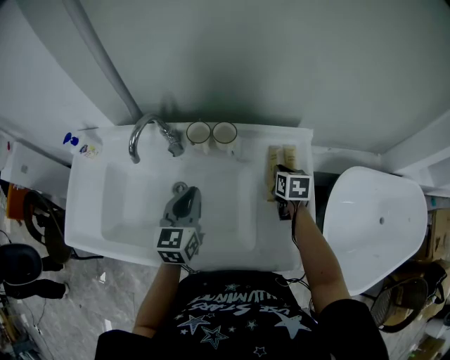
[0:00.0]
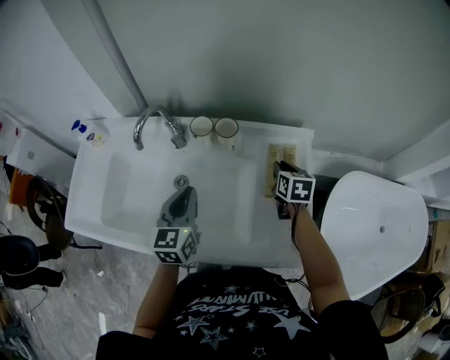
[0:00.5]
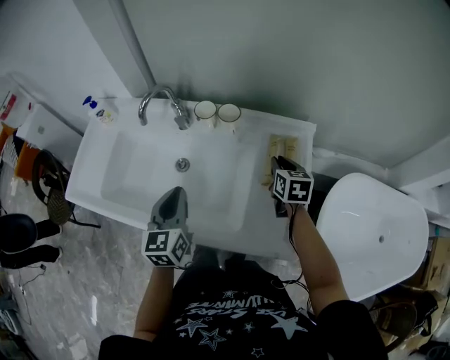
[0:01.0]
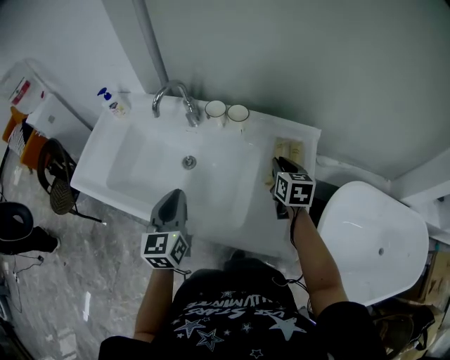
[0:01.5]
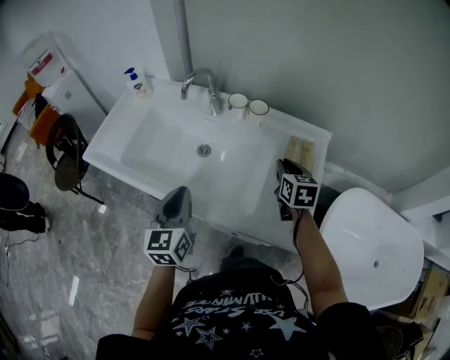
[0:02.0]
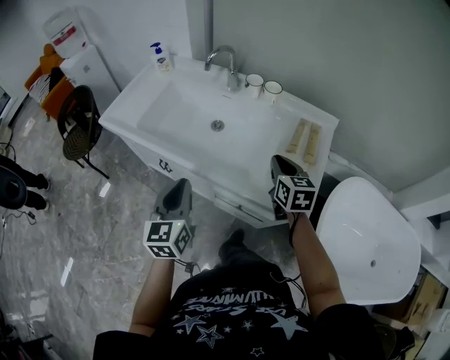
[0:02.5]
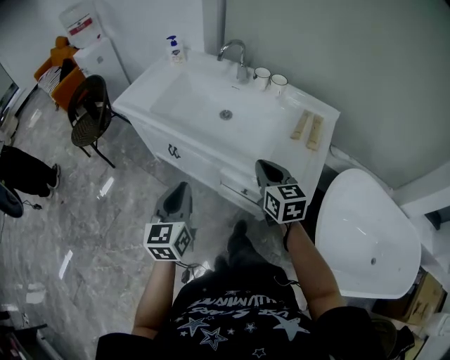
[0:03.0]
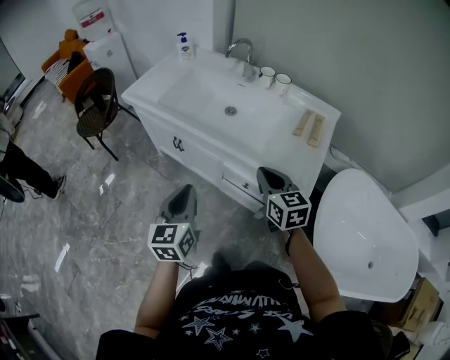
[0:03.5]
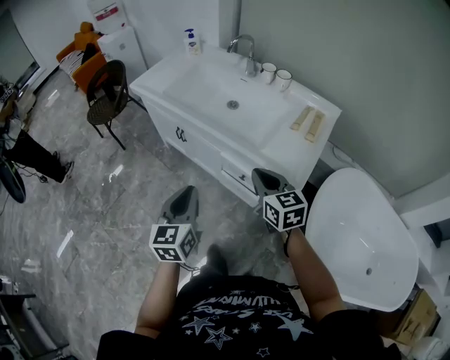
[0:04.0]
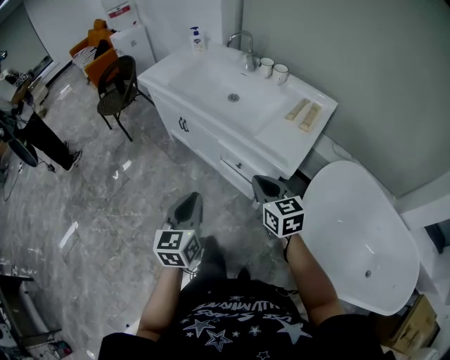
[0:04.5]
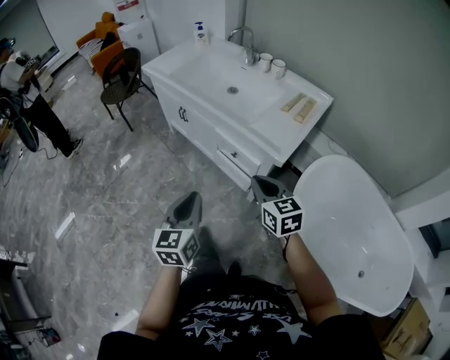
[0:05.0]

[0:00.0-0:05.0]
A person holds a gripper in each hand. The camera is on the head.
0:00.0 to 0:02.5: The right gripper ends up approximately 25 cm from where it was, and swivels approximately 30 degrees. Meanwhile the left gripper moves about 35 cm, and changes its angle by about 30 degrees.
0:02.5 to 0:05.0: Both grippers move backward, about 35 cm. The right gripper turns by some 30 degrees.

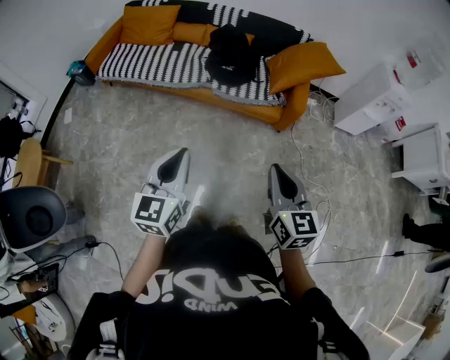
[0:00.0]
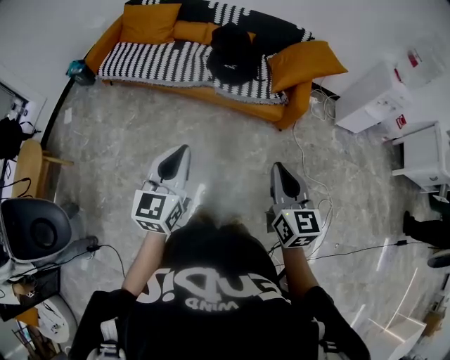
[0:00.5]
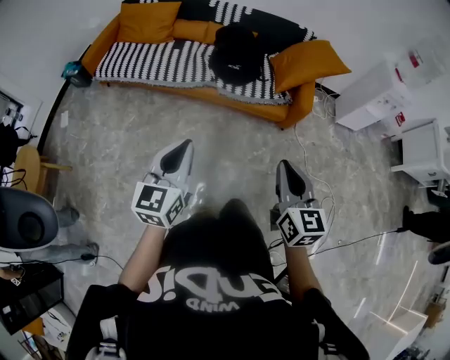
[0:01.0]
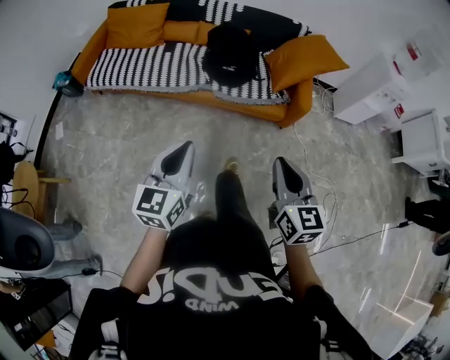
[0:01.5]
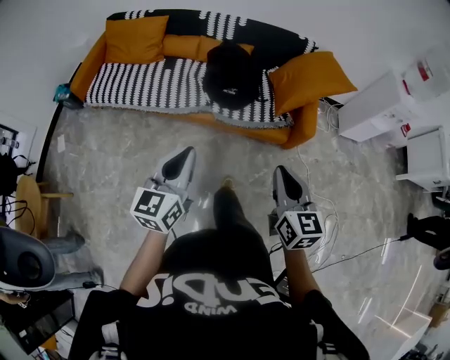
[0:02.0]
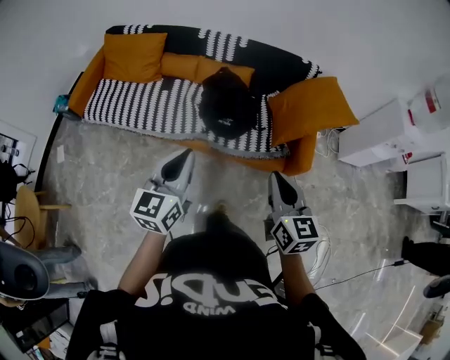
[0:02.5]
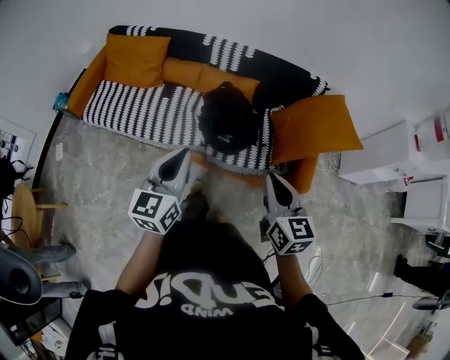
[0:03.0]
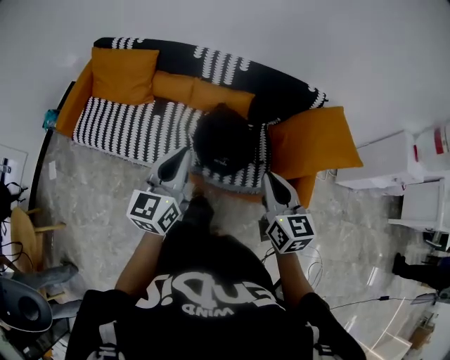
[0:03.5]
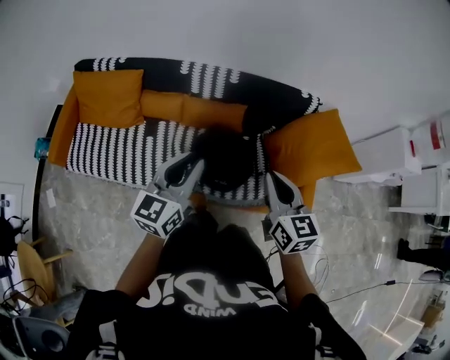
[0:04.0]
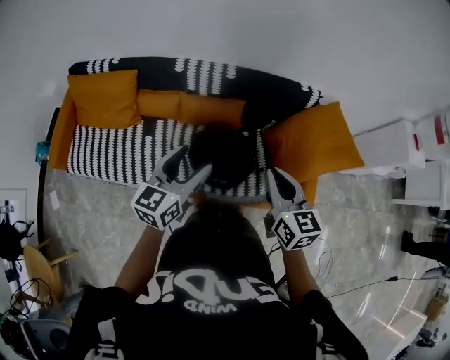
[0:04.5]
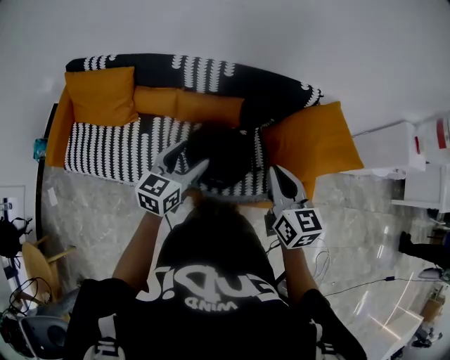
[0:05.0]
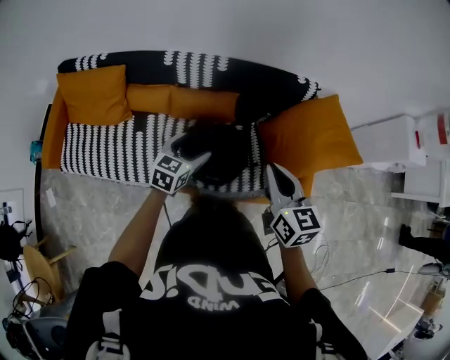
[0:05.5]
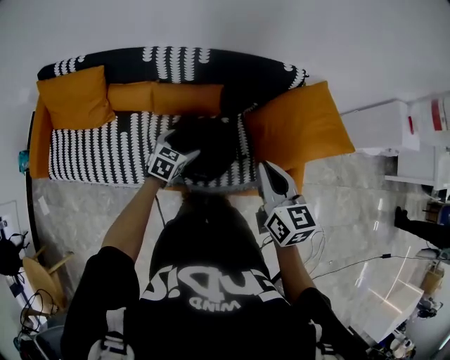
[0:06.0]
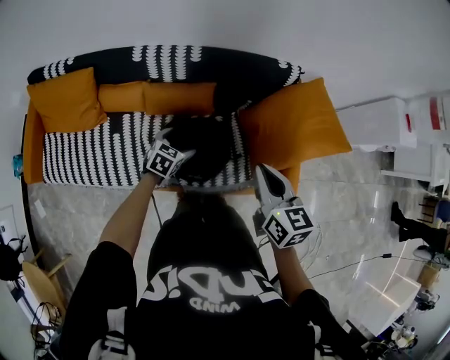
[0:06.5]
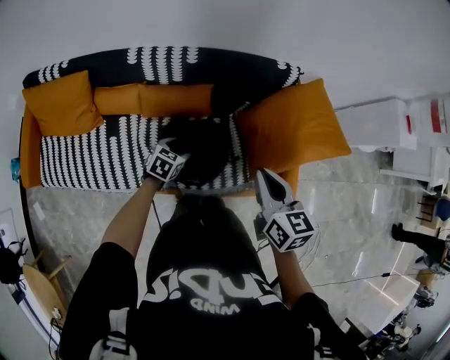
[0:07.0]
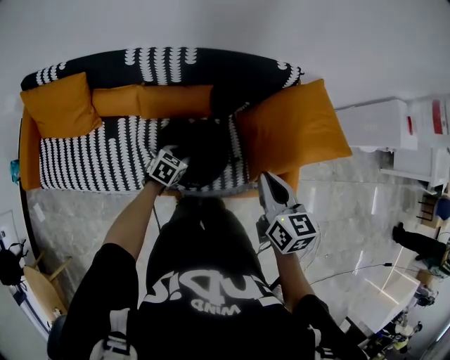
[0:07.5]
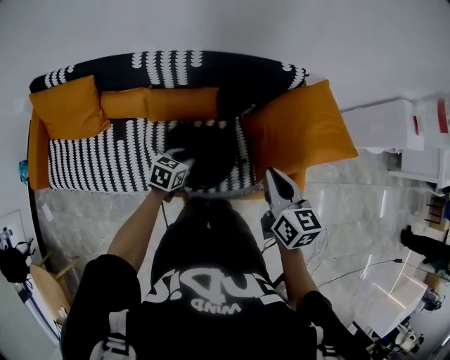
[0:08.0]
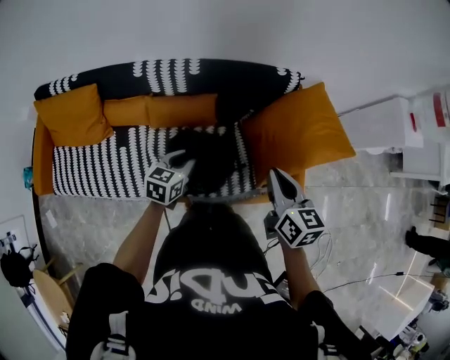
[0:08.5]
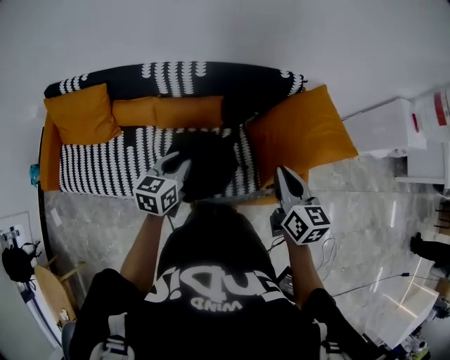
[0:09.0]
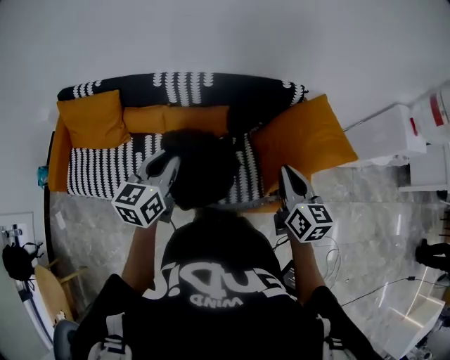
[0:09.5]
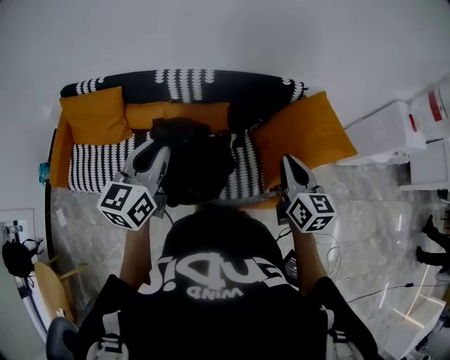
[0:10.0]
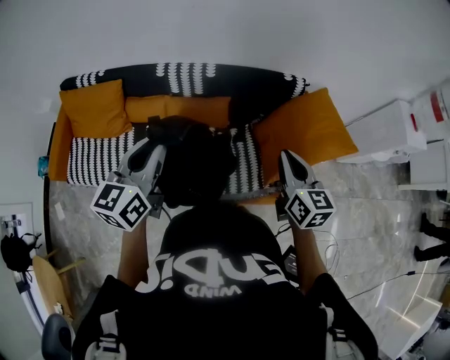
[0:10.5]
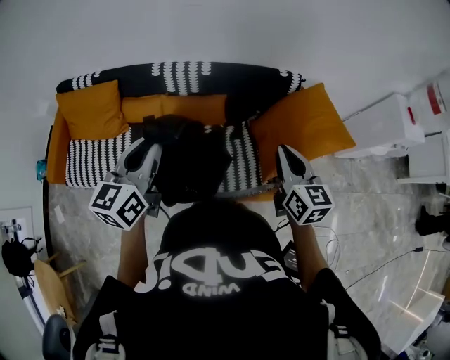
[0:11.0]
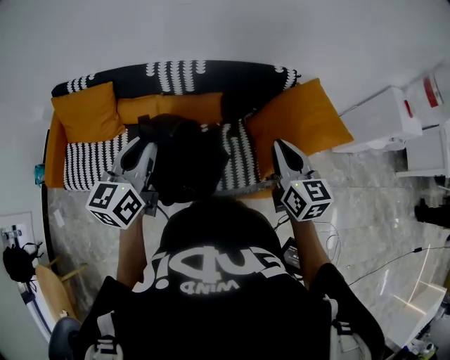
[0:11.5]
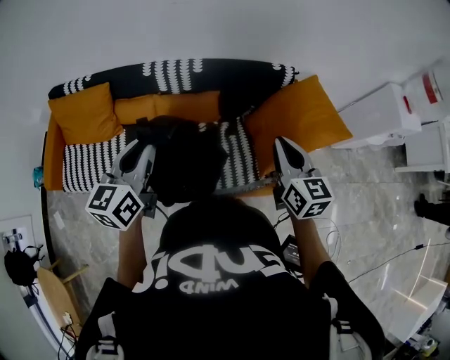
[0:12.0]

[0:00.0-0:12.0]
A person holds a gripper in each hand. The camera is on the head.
0:00.0 to 0:02.0: Both grippers move forward, about 25 cm.
0:02.0 to 0:04.0: Both grippers are carried forward, approximately 60 cm.
0:04.0 to 0:06.0: The right gripper goes approximately 15 cm forward, to the right and downward, while the left gripper is displaced downward and forward by roughly 35 cm, tilts its fingers about 40 degrees downward, and opens its fingers.
0:06.0 to 0:08.0: The left gripper goes downward and returns, roughly 10 cm each way, and closes. Meanwhile the right gripper shifts about 5 cm forward.
0:08.0 to 0:10.0: The right gripper shifts approximately 10 cm upward, backward and to the right. Meanwhile the left gripper moves upward, approximately 35 cm, and angles its fingers upward, by some 30 degrees.
0:10.0 to 0:12.0: The grippers stay close to where they were, moving slightly.

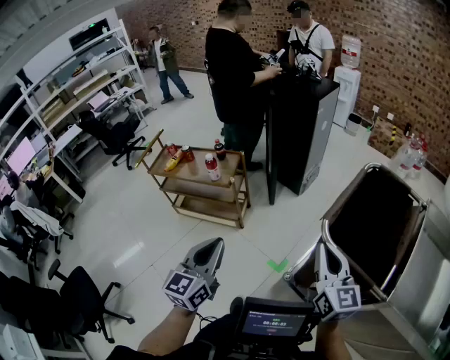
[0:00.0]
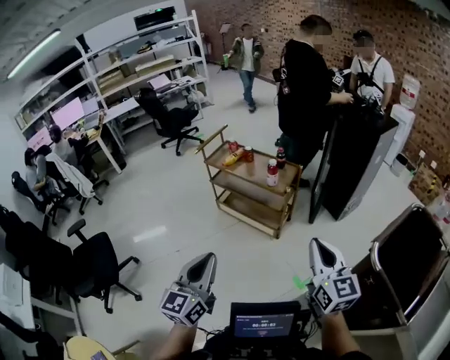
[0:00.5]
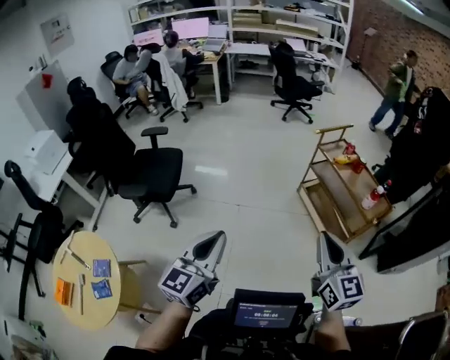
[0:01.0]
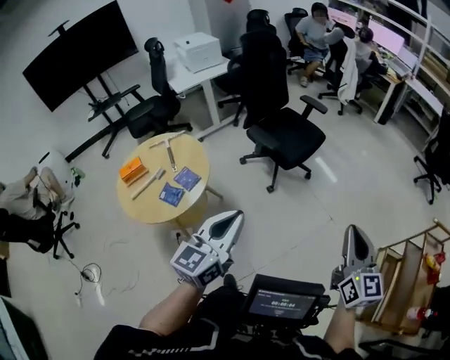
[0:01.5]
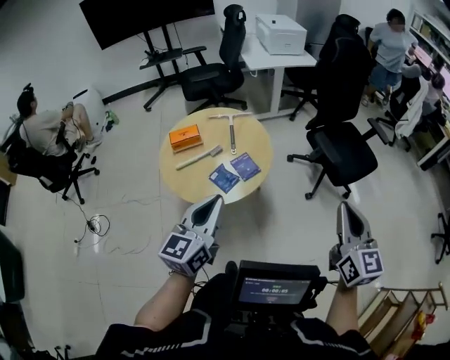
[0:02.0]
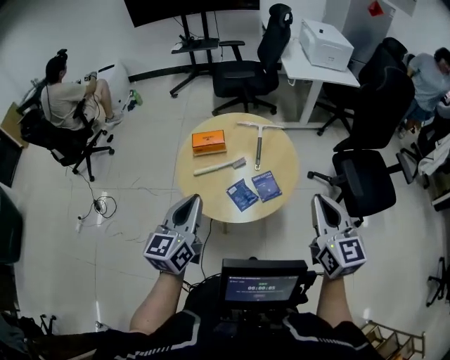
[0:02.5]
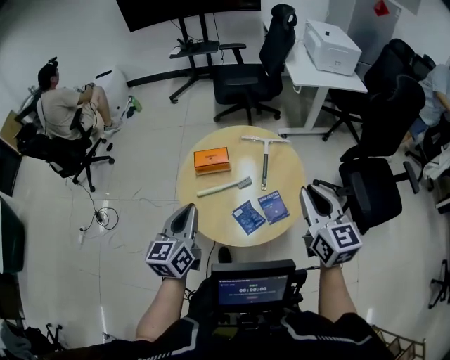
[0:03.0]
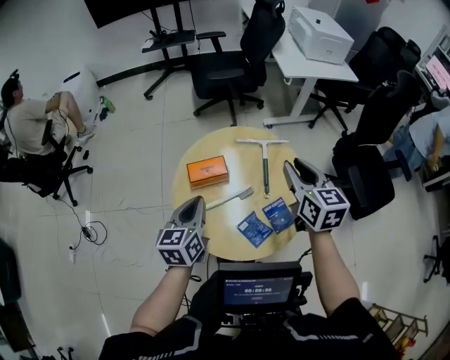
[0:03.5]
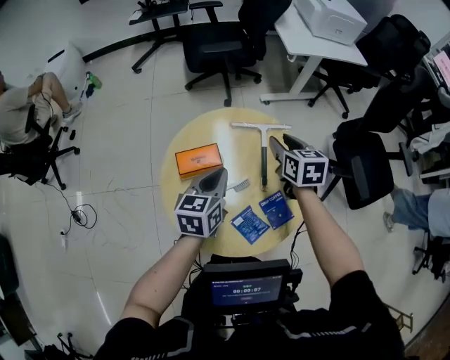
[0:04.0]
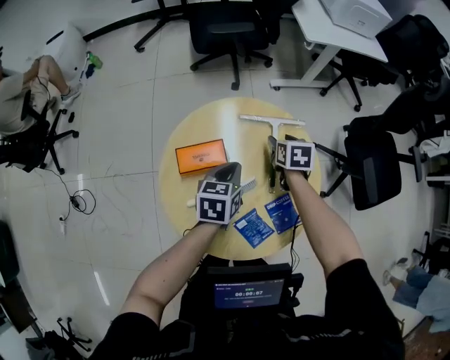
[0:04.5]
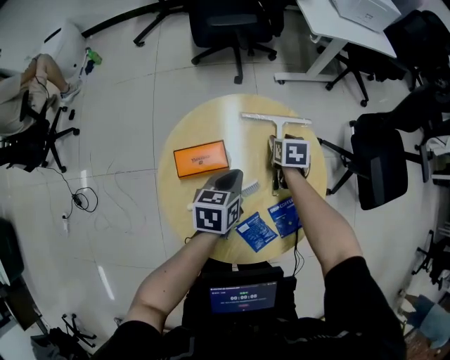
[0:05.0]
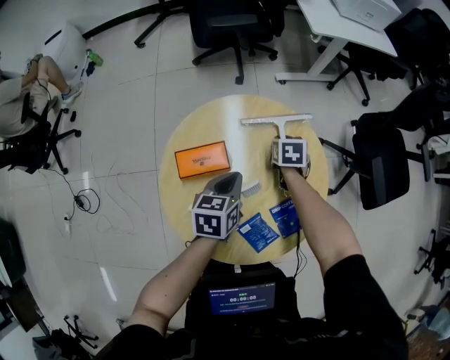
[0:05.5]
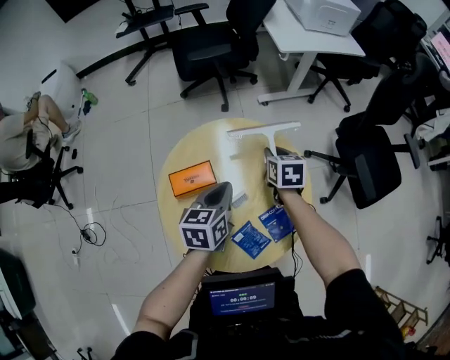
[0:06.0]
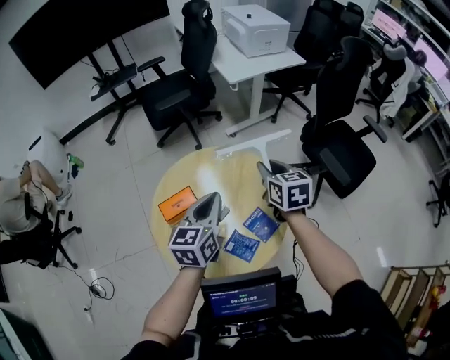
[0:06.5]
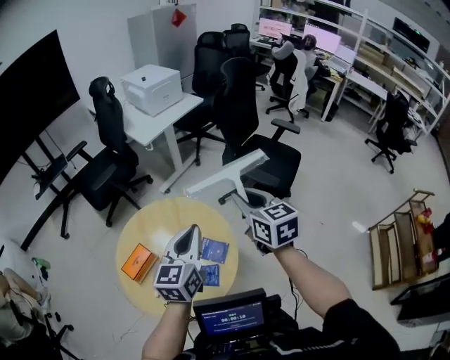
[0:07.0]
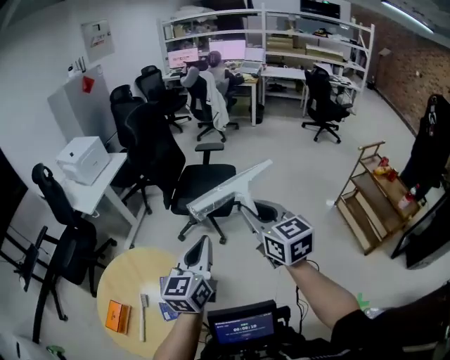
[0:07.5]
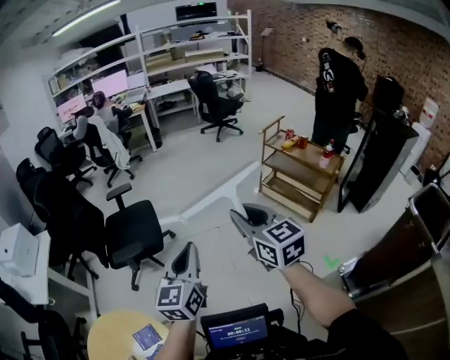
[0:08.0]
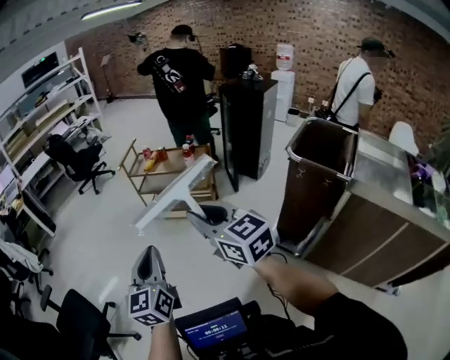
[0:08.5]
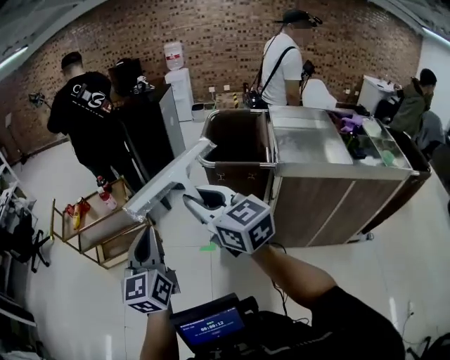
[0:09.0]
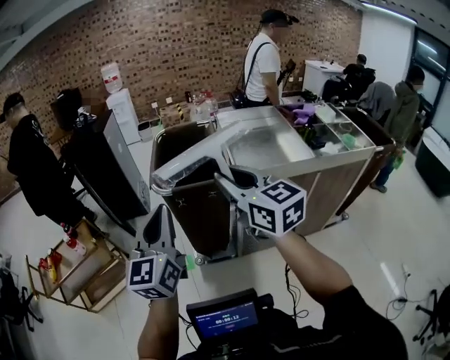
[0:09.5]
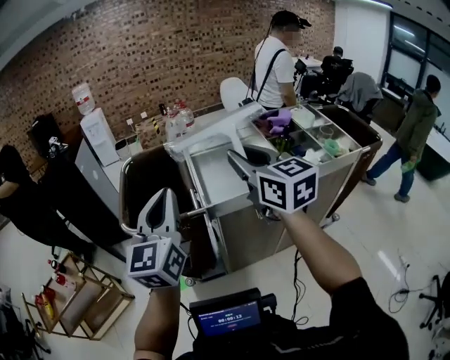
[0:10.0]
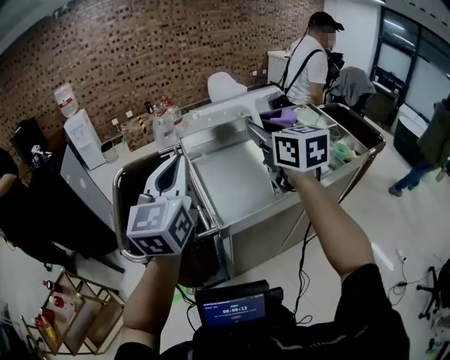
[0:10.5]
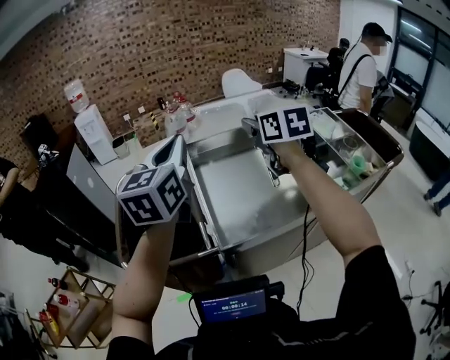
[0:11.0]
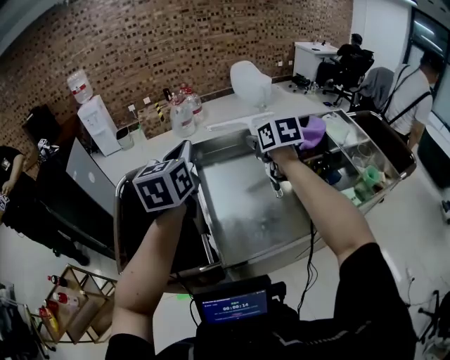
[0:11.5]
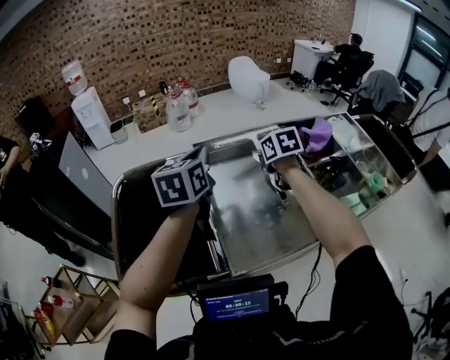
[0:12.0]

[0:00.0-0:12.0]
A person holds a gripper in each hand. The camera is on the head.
0:00.0 to 0:02.0: Both grippers are carried some 1.5 m. The left gripper swivels about 120 degrees. The right gripper swivels some 120 degrees.
0:02.0 to 0:04.0: Both grippers are carried forward, about 80 cm. The right gripper tilts its fingers roughly 30 degrees downward, and opens up. The left gripper turns by some 30 degrees.
0:04.0 to 0:06.0: The left gripper is displaced forward by approximately 5 cm, and moves roughly 15 cm downward and comes back. Meanwhile the right gripper goes some 15 cm downward and forward.
0:06.0 to 0:08.0: The two grippers travel together, approximately 1 m. The right gripper tilts its fingers roughly 40 degrees upward, while the left gripper angles its fingers upward, by about 30 degrees.
0:08.0 to 0:10.0: Both grippers are carried approximately 1 m. The left gripper changes its angle by about 100 degrees, while the right gripper swivels approximately 100 degrees.
0:10.0 to 0:12.0: The two grippers travel together, forward, some 50 cm. The right gripper travels downward by approximately 20 cm, and tilts its fingers approximately 40 degrees downward, while the left gripper rotates about 30 degrees.
